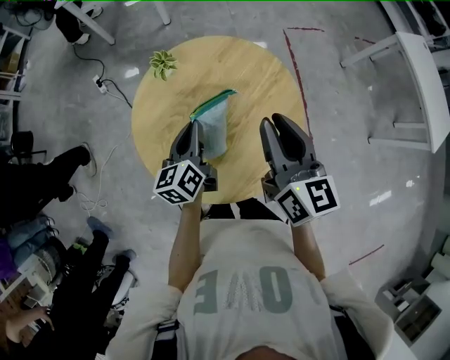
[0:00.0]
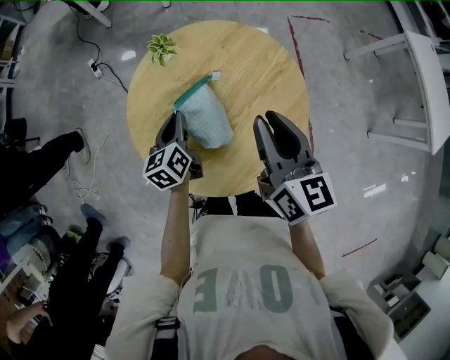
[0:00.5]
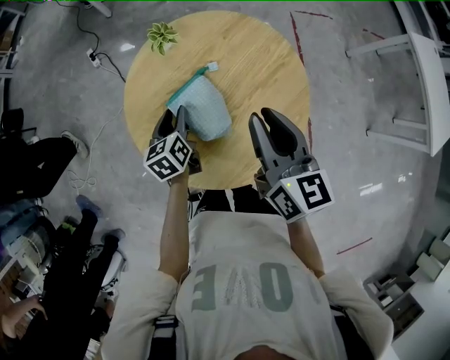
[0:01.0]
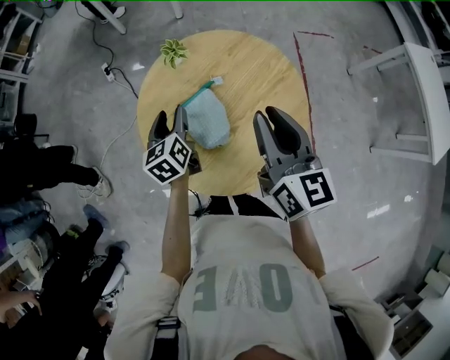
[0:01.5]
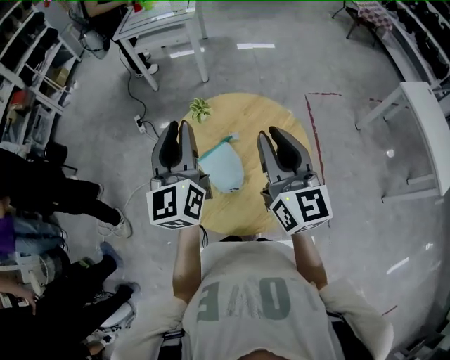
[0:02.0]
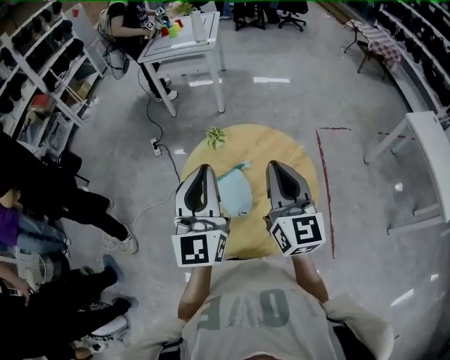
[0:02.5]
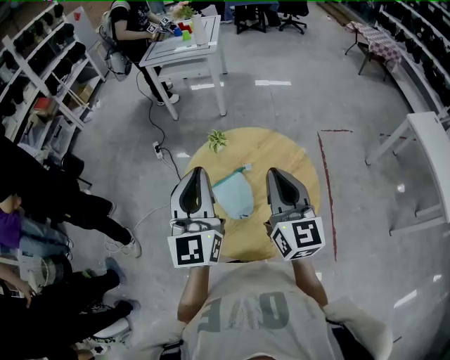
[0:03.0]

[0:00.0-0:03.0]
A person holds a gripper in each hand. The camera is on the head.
0:00.0 to 0:01.5: The left gripper is displaced to the left by about 10 cm, goes downward and returns, roughly 10 cm each way, changes its angle by some 20 degrees, and opens its fingers.
0:01.5 to 0:03.0: The right gripper shifts about 10 cm upward, while the left gripper is displaced upward by approximately 30 cm, tilts its fingers some 40 degrees upward, and closes up.

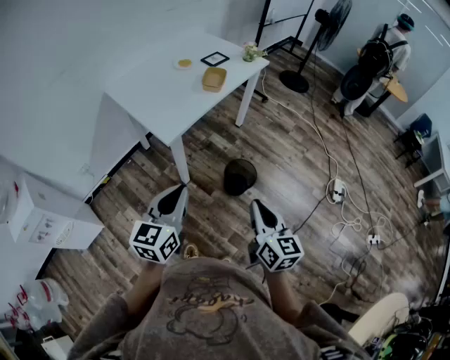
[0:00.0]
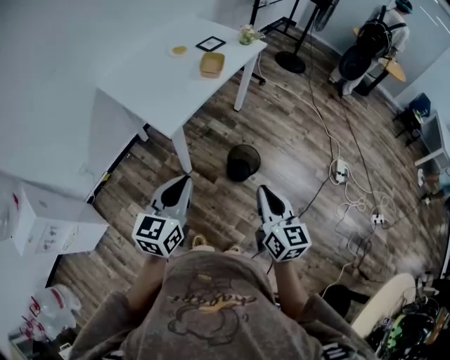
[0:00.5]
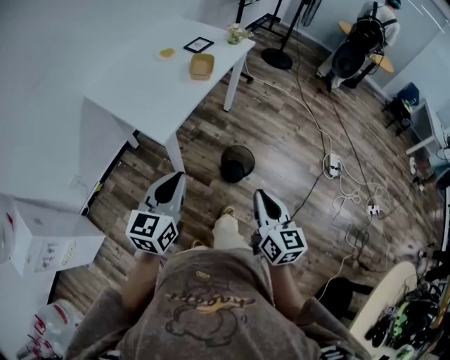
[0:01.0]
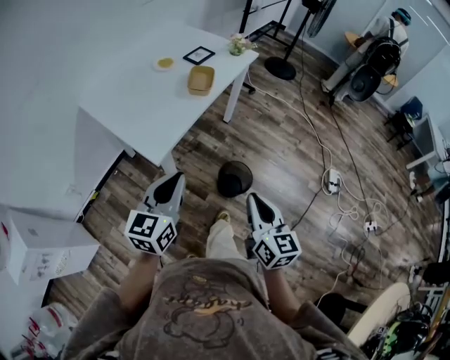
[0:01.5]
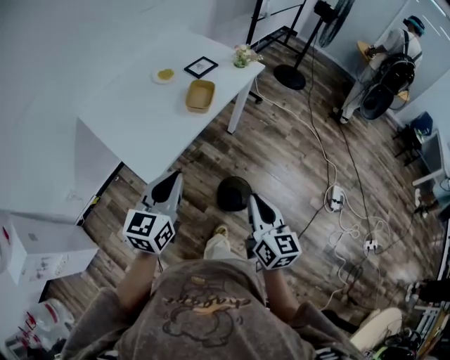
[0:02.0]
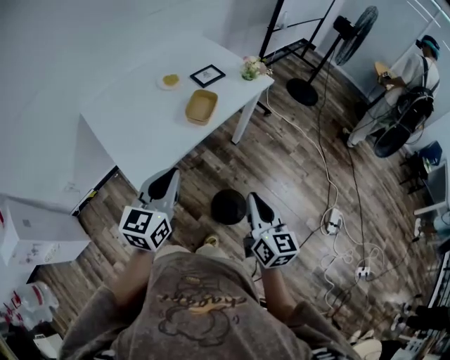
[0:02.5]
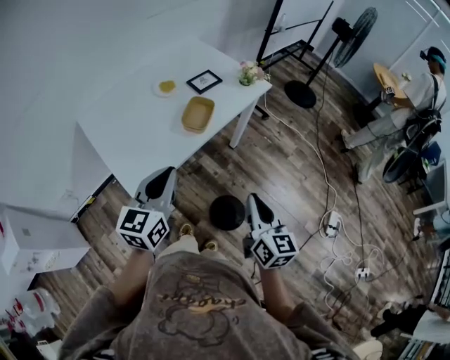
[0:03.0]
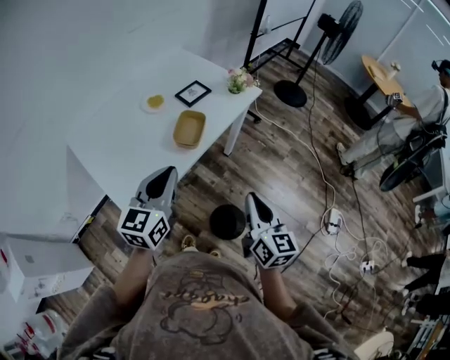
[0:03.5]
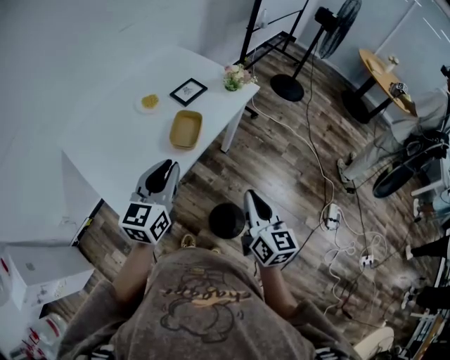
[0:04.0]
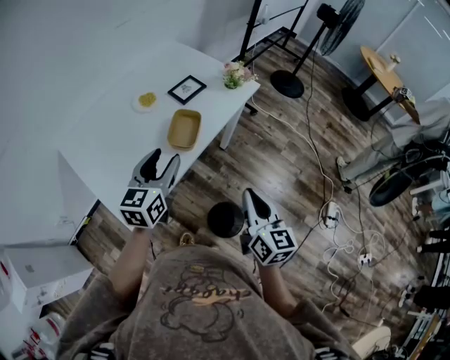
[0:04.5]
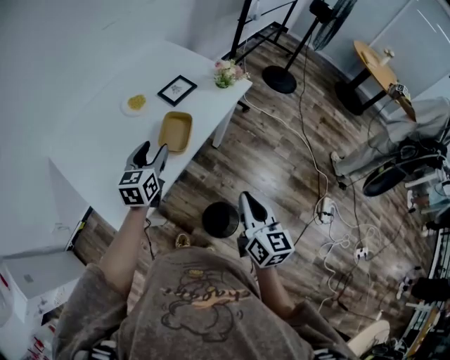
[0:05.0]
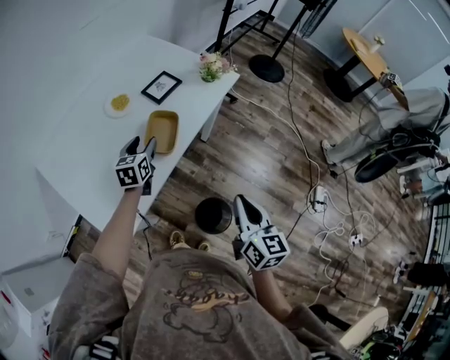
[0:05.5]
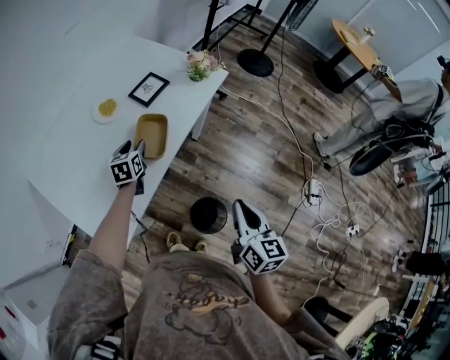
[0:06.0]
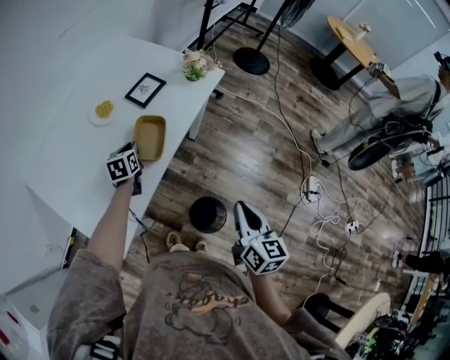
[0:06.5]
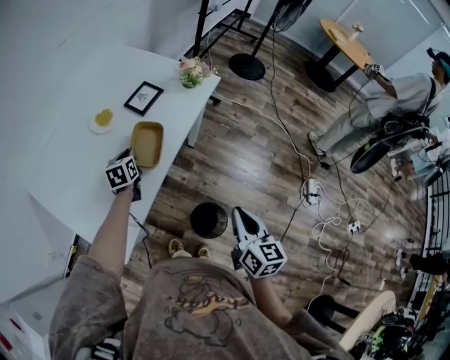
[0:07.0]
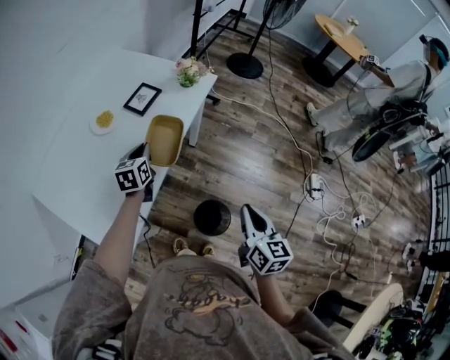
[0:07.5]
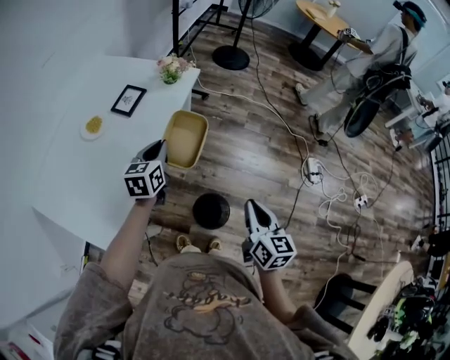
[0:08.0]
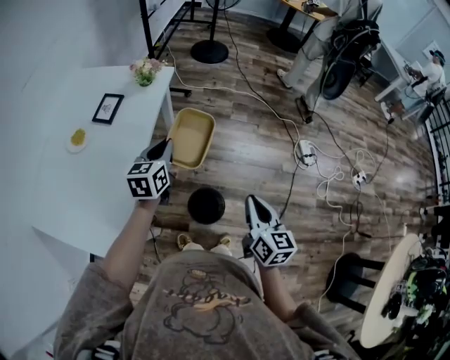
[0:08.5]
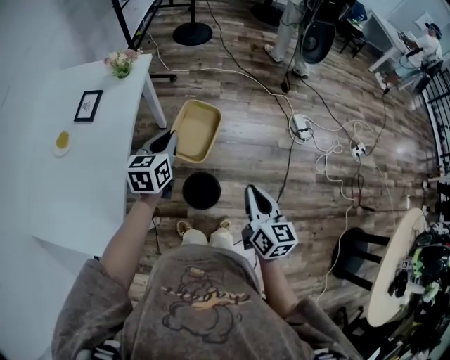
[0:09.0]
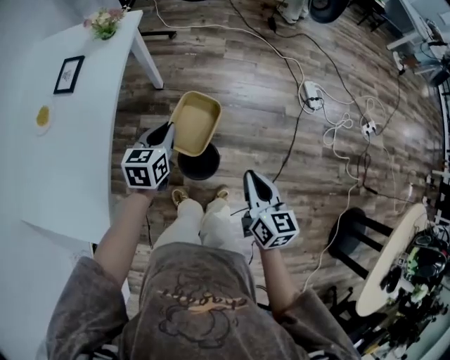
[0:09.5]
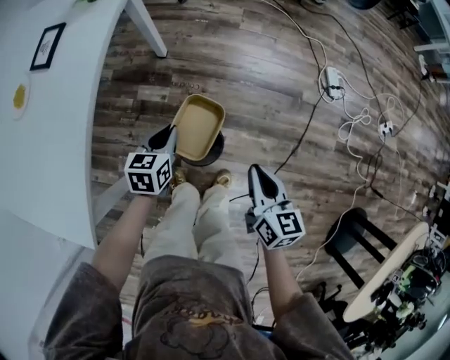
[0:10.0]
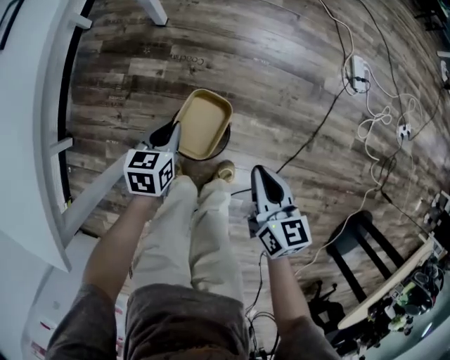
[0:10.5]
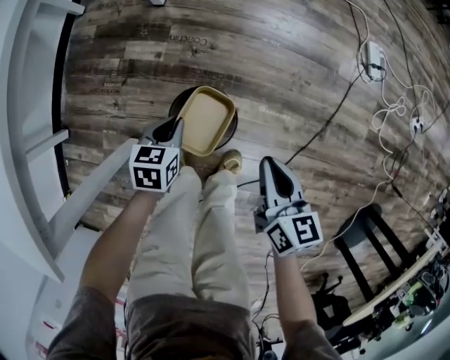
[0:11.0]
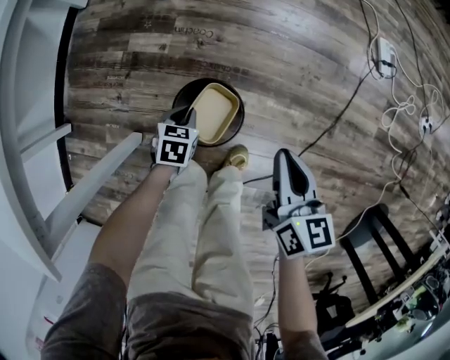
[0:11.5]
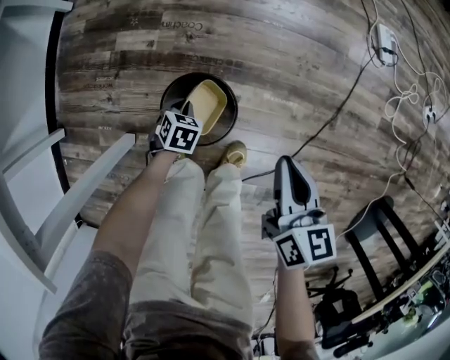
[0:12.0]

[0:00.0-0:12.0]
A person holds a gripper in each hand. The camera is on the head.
0:00.0 to 0:02.0: Both grippers move forward, roughly 25 cm.
0:02.0 to 0:04.0: Both grippers travel together forward, some 20 cm.
0:04.0 to 0:06.0: The right gripper is displaced downward by roughly 5 cm, while the left gripper goes approximately 35 cm downward and forward, swivels some 30 degrees, and opens.
0:06.0 to 0:08.0: The right gripper is displaced backward and to the right by roughly 10 cm; the left gripper goes about 25 cm to the right, upward and backward, swivels roughly 30 degrees, and closes its fingers.
0:08.0 to 0:10.0: The two grippers go about 30 cm downward and to the right. The left gripper rotates approximately 20 degrees.
0:10.0 to 0:12.0: The right gripper is displaced downward by about 25 cm; the left gripper shifts some 50 cm downward, and tips its fingers downward by about 30 degrees.

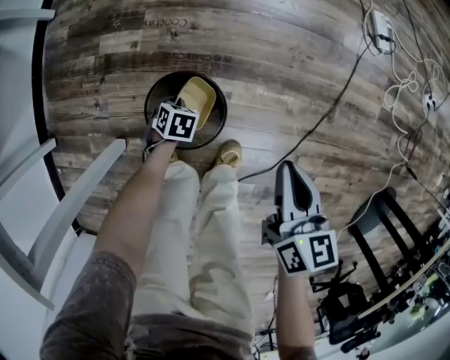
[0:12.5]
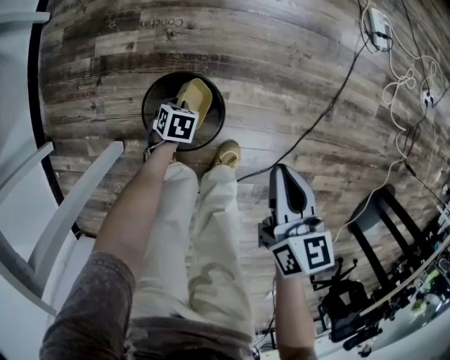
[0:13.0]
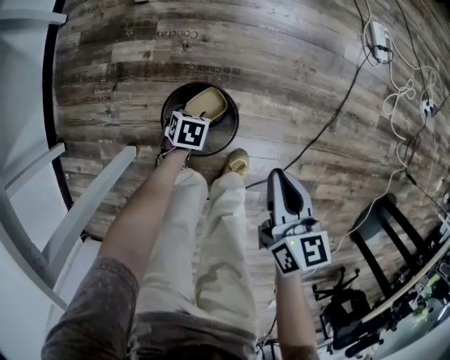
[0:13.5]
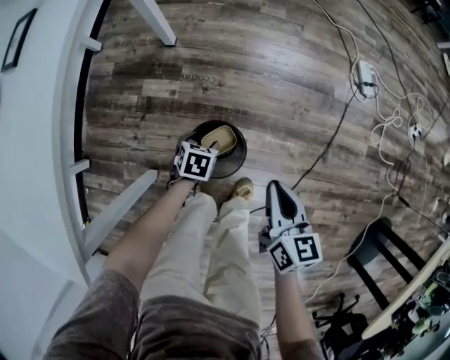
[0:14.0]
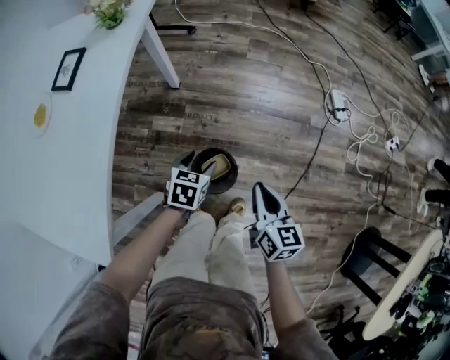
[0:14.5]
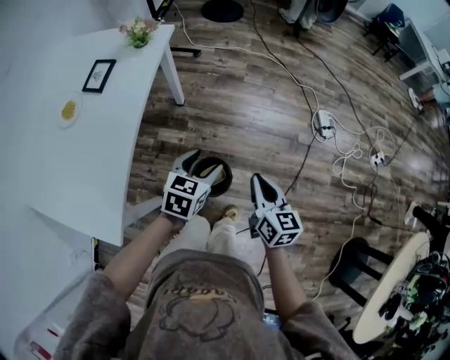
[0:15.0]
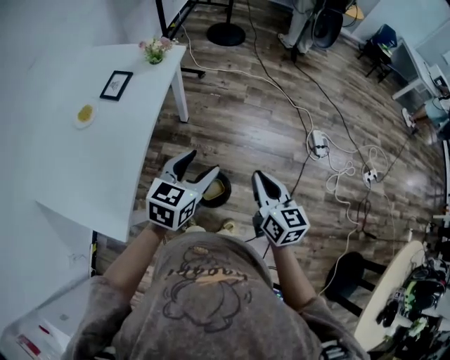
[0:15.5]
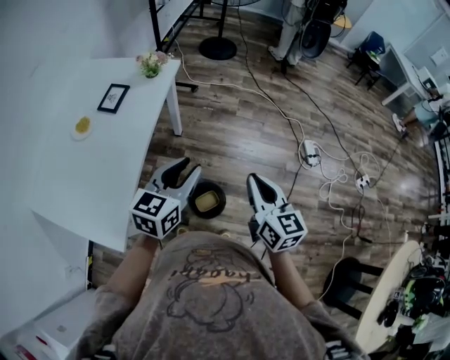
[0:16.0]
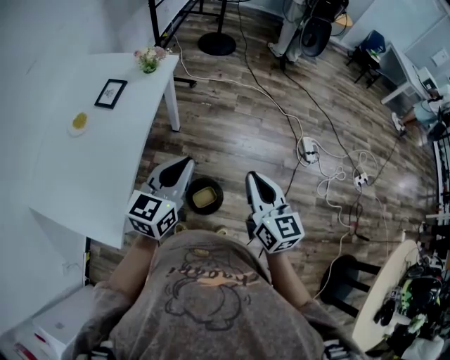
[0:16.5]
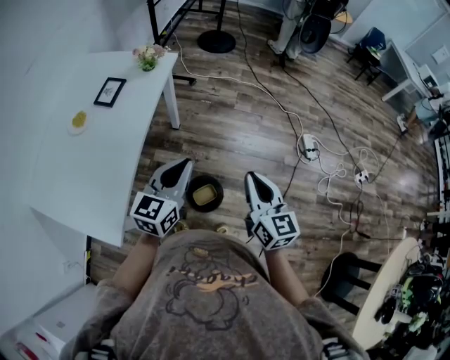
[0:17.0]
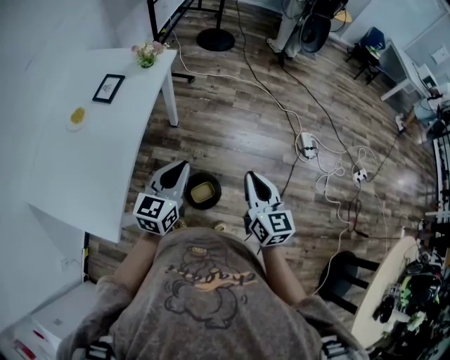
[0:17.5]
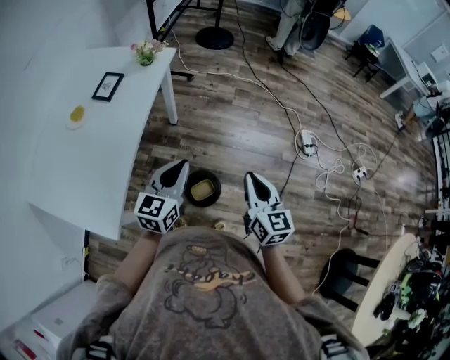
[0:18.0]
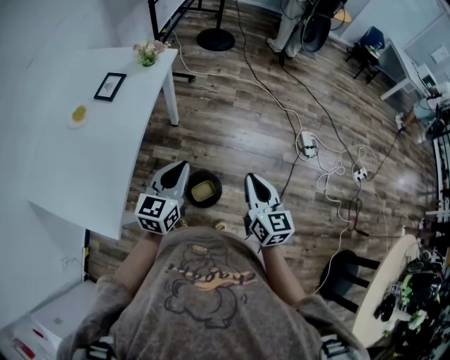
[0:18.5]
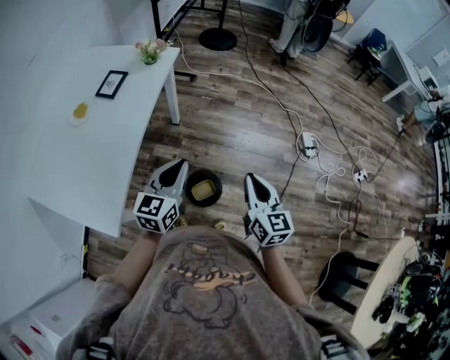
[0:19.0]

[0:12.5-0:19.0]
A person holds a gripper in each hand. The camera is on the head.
0:12.5 to 0:14.5: The right gripper travels upward by approximately 25 cm. Meanwhile the left gripper moves upward, approximately 50 cm, changes its angle by some 30 degrees, and opens its fingers.
0:14.5 to 0:17.0: Both grippers travel together upward, some 35 cm. The right gripper turns by about 20 degrees, while the left gripper angles its fingers upward, by about 40 degrees, and closes.
0:17.0 to 0:19.0: The right gripper shifts by some 5 cm.

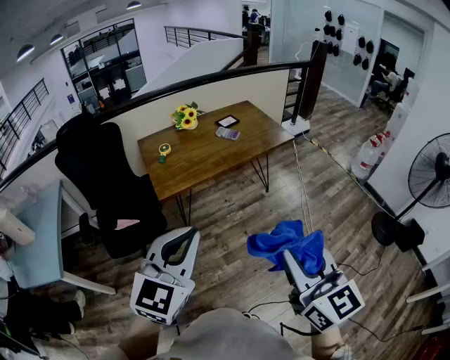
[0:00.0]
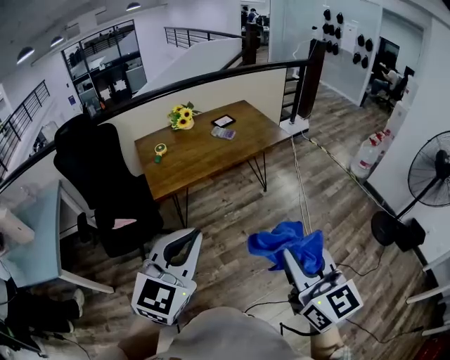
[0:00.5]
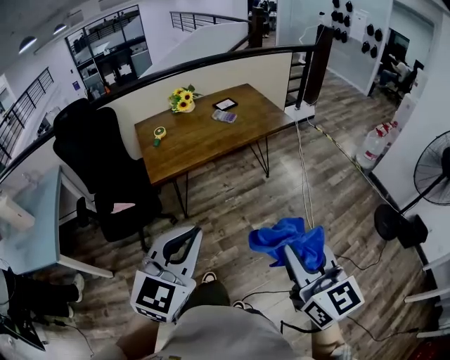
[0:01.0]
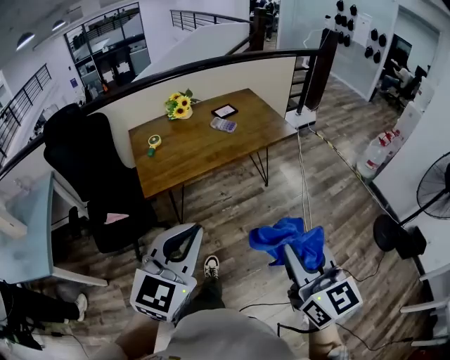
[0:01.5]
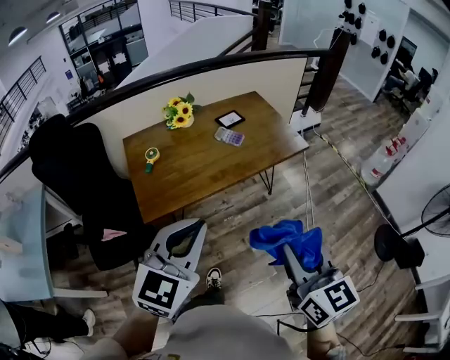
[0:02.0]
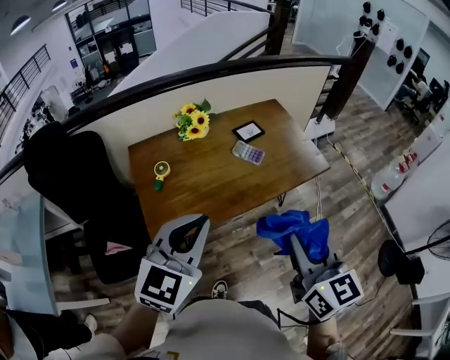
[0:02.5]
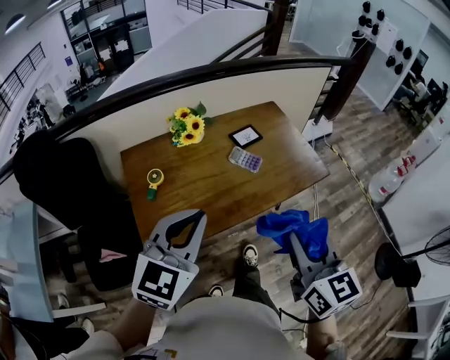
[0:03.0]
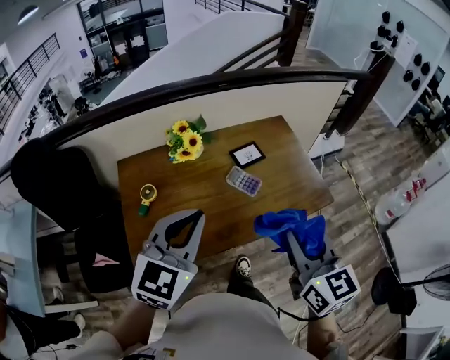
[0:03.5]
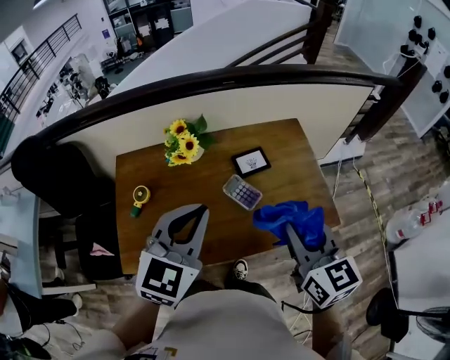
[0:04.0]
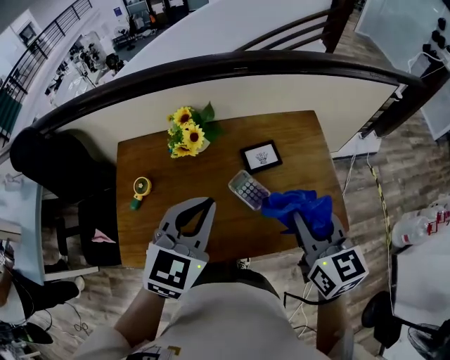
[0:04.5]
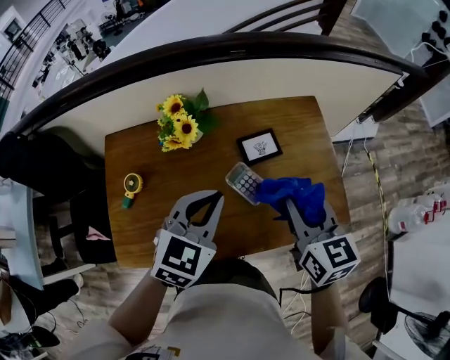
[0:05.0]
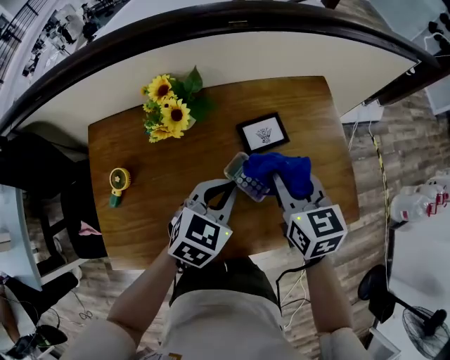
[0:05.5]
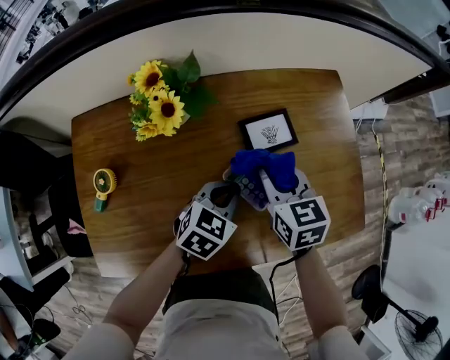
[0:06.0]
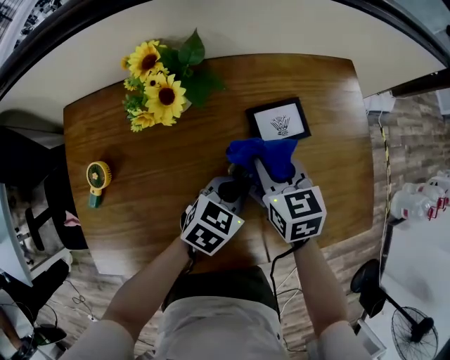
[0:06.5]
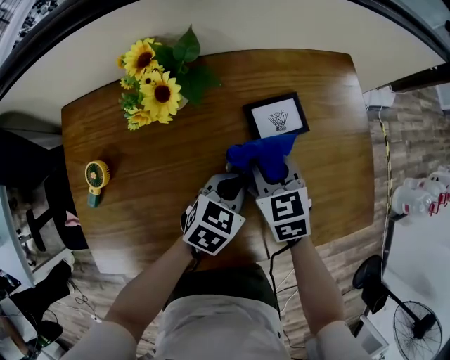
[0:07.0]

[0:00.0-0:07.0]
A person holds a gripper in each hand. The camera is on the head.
0:00.0 to 0:02.0: Both grippers move forward, roughly 25 cm.
0:02.0 to 0:03.5: Both grippers travel together forward, roughly 35 cm.
0:03.5 to 0:05.0: The right gripper goes about 30 cm forward and downward, while the left gripper is displaced forward, downward and to the right by about 25 cm.
0:05.0 to 0:07.0: Both grippers travel together downward, roughly 30 cm. The right gripper changes its angle by roughly 30 degrees; the left gripper rotates approximately 20 degrees.
